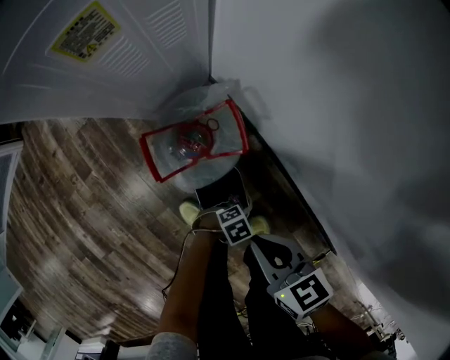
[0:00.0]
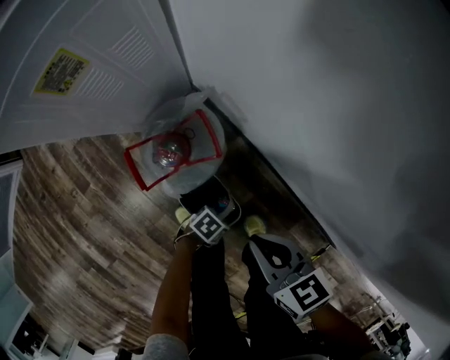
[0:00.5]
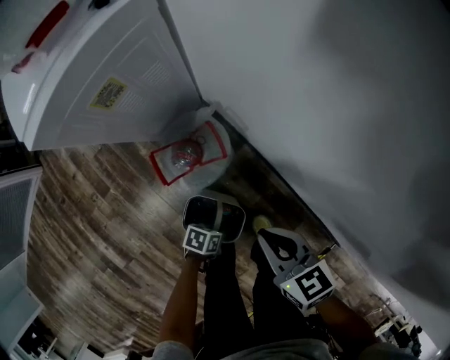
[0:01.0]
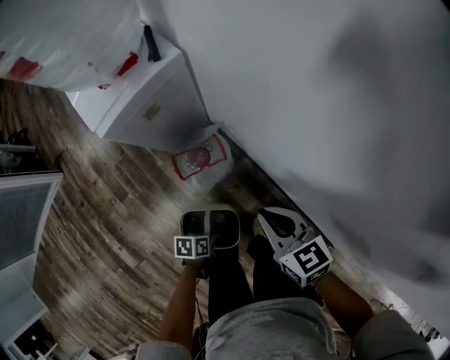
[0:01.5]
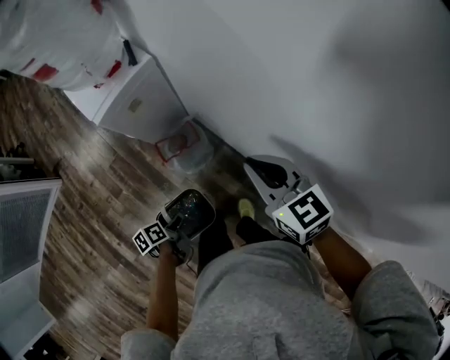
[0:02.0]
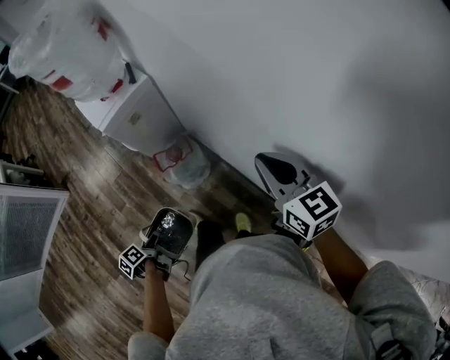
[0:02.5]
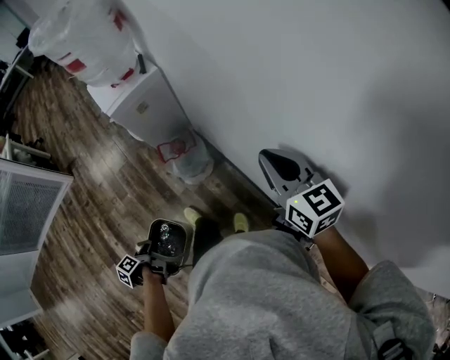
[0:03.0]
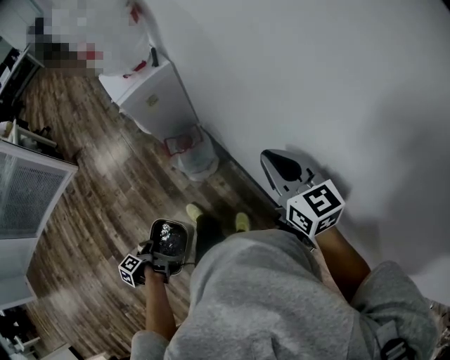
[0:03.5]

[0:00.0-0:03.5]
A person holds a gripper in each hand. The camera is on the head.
0:00.0 to 0:02.0: Both grippers move upward, some 40 cm. The left gripper rotates around the line of its fingers by roughly 80 degrees, counterclockwise from behind. Meanwhile the right gripper swivels approximately 30 degrees.
0:02.0 to 0:03.5: The left gripper shifts by some 20 cm, and swivels some 50 degrees; the right gripper shifts by approximately 15 cm.

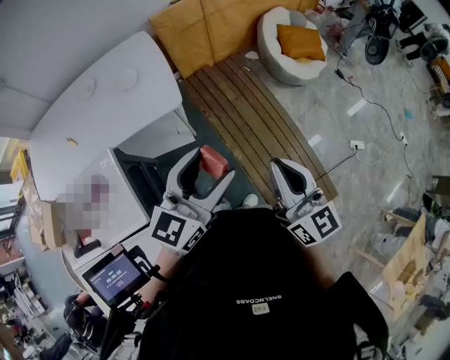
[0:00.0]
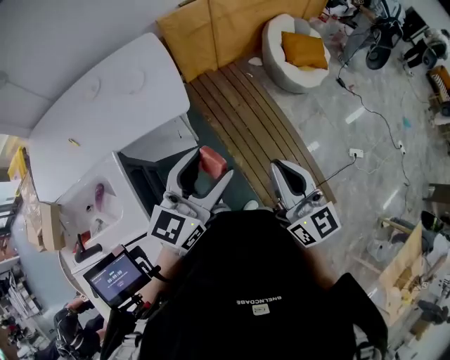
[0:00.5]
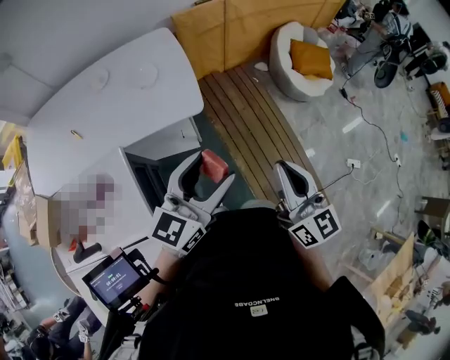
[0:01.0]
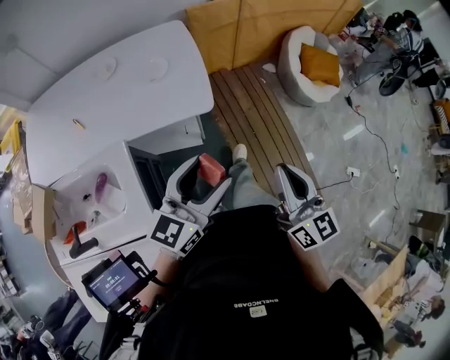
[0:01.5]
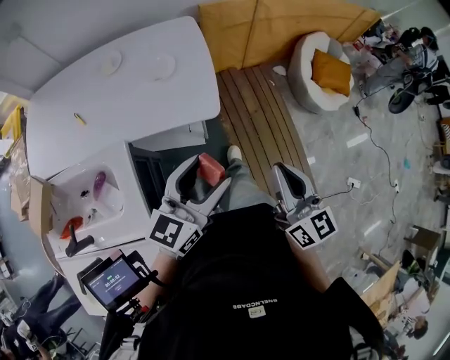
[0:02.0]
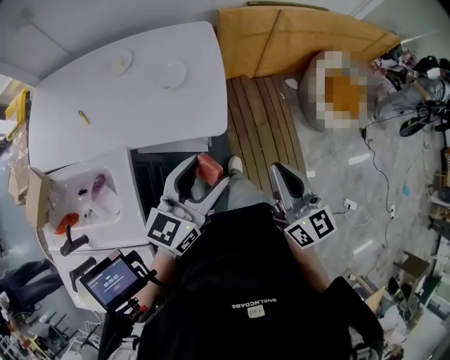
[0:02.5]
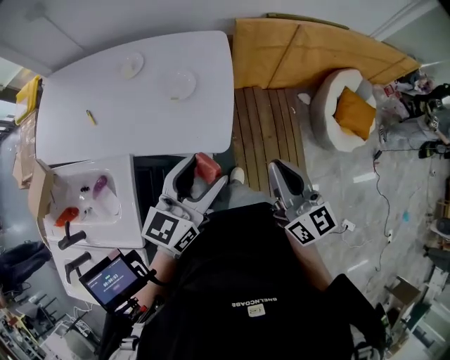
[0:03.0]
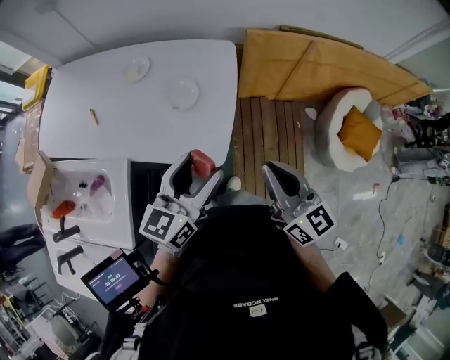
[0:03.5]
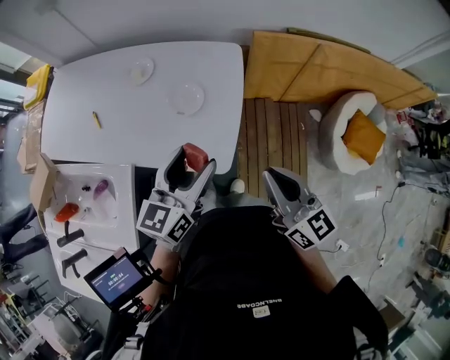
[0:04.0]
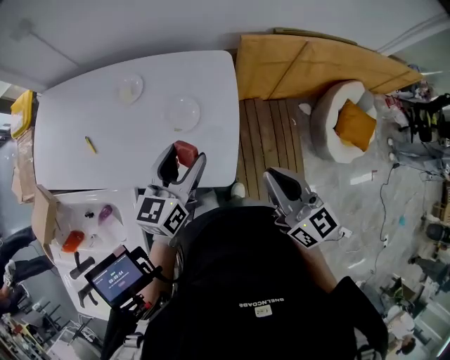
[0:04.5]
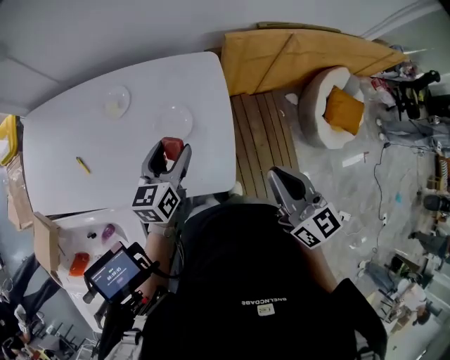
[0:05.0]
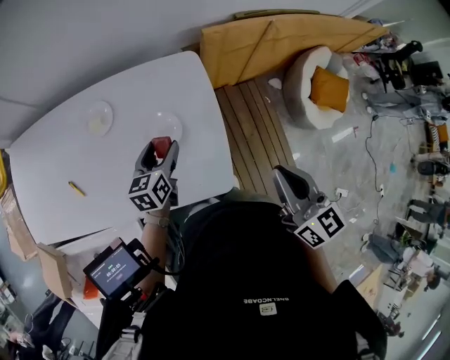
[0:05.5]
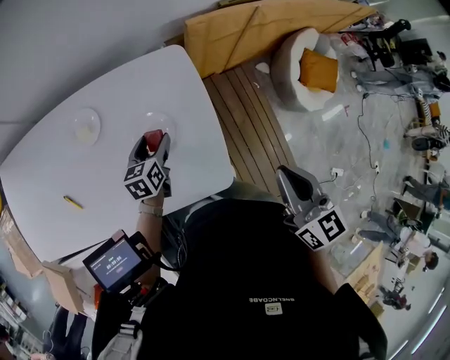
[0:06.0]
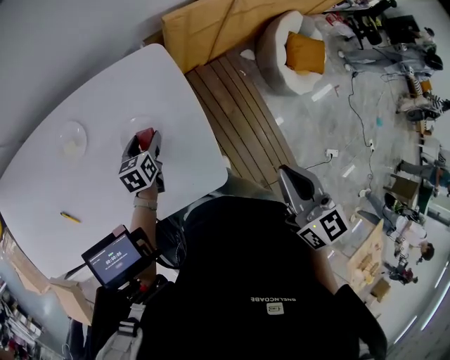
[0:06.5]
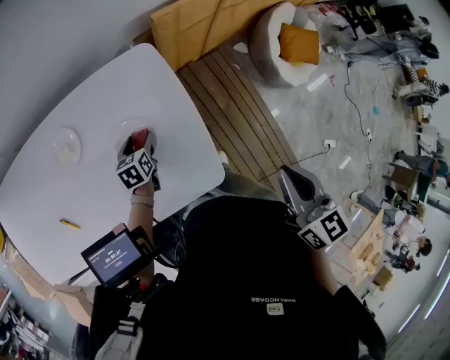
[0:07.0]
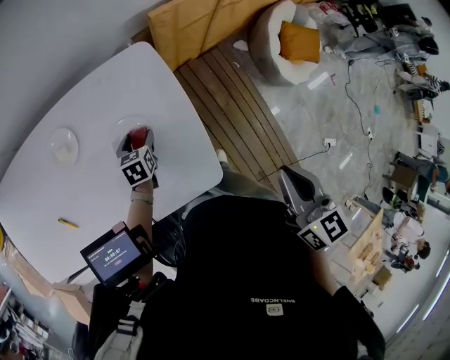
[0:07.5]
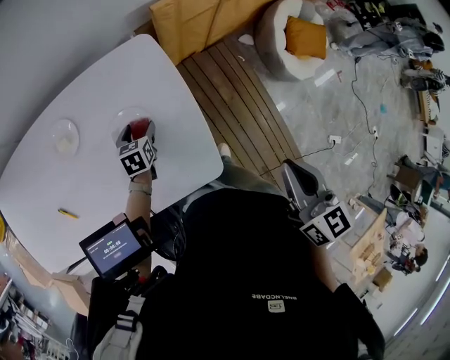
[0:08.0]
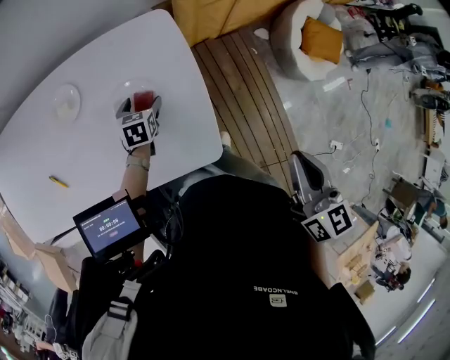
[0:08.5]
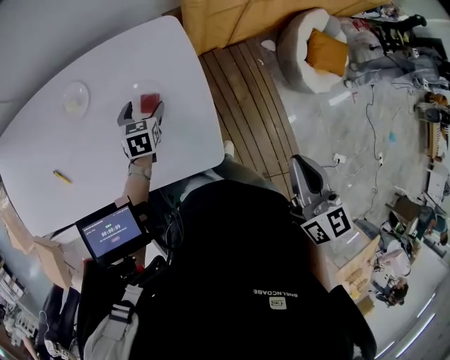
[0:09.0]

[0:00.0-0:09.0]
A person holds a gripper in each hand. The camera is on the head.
0:00.0 to 0:02.0: The right gripper heads forward and to the left, covering approximately 20 cm. Meanwhile the left gripper shifts roughly 15 cm to the left and forward.
0:02.0 to 0:04.5: The right gripper shifts by some 30 cm, and changes its angle by roughly 20 degrees. The left gripper shifts by approximately 30 cm, and changes its angle by roughly 30 degrees.
0:04.5 to 0:07.0: The left gripper shifts roughly 35 cm downward and forward, and points its fingers approximately 30 degrees further downward. Meanwhile the right gripper changes place by some 5 cm, and rotates about 40 degrees.
0:07.0 to 0:09.0: The grippers move only a little.

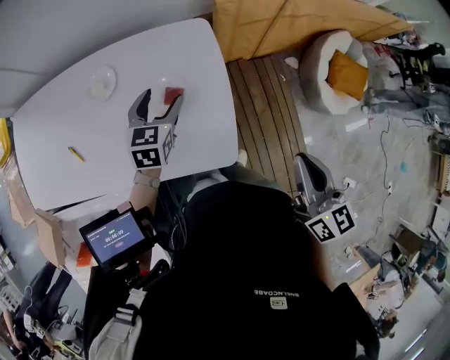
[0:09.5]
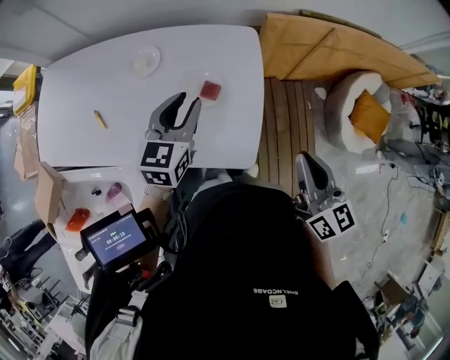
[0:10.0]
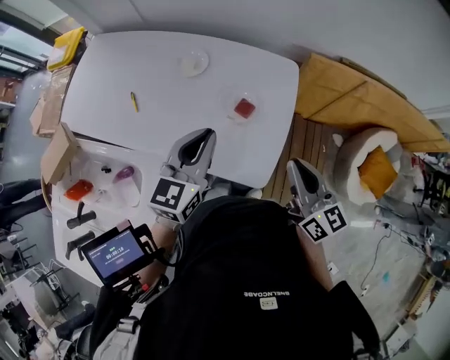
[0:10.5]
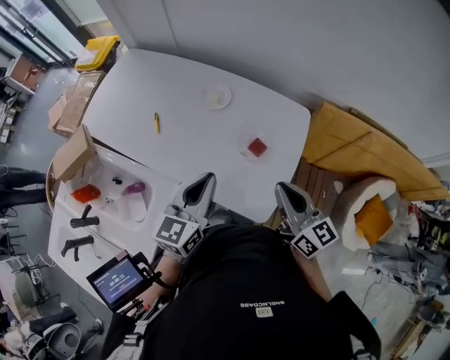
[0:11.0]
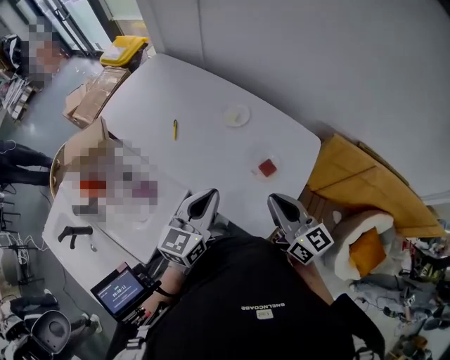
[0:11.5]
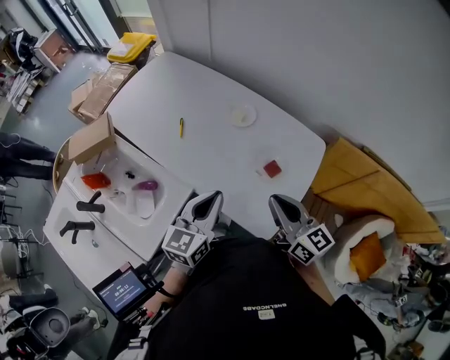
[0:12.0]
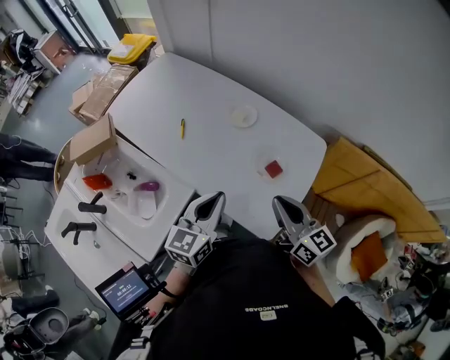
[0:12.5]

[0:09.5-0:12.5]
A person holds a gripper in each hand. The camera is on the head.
0:09.5 to 0:11.0: The right gripper ends up approximately 20 cm from where it was, and turns by approximately 40 degrees. Meanwhile the left gripper shifts by roughly 25 cm, turns by approximately 30 degrees, and closes.
0:11.0 to 0:12.5: The right gripper moves to the left, roughly 5 cm.

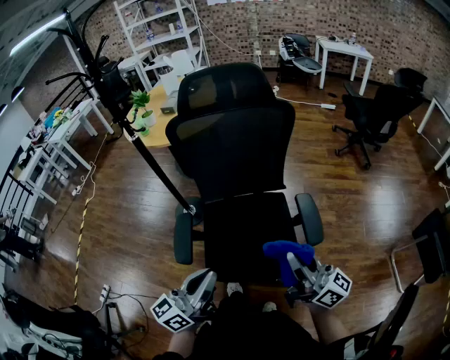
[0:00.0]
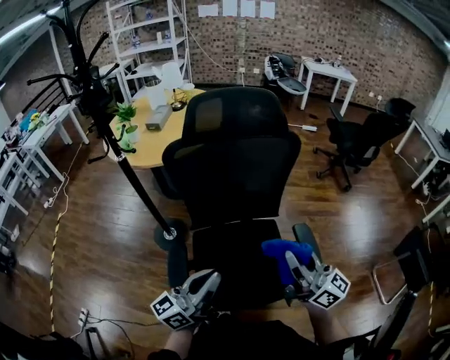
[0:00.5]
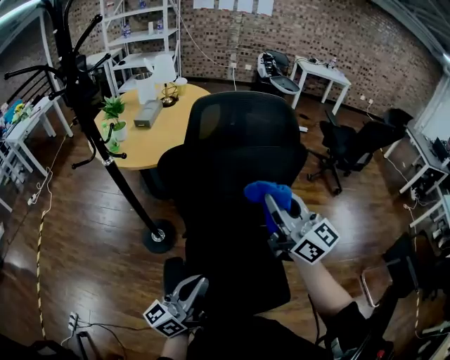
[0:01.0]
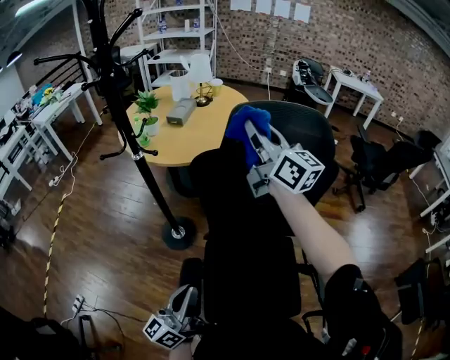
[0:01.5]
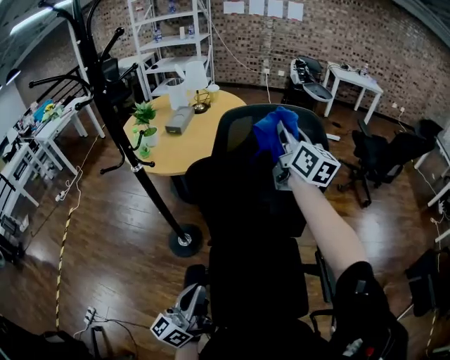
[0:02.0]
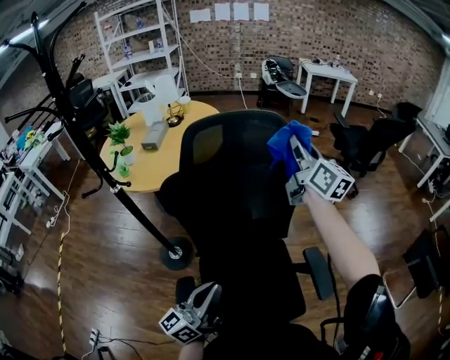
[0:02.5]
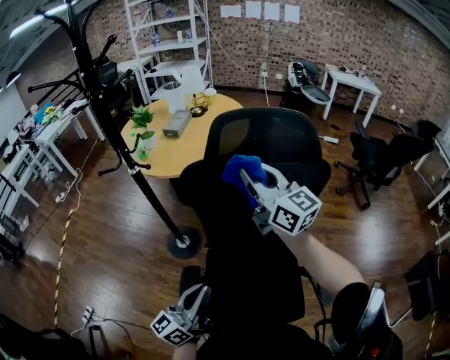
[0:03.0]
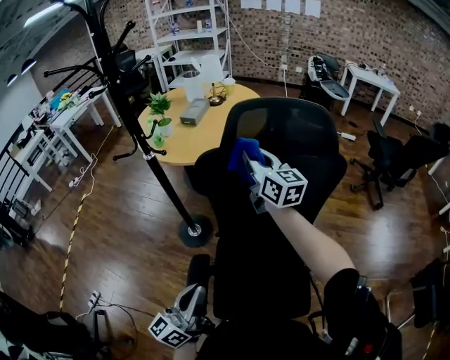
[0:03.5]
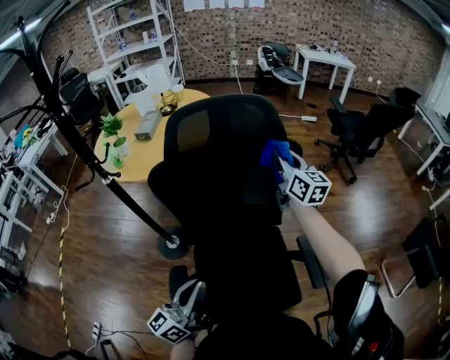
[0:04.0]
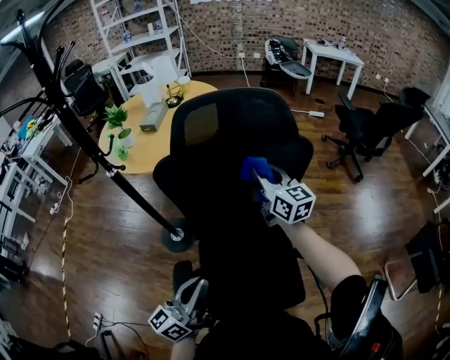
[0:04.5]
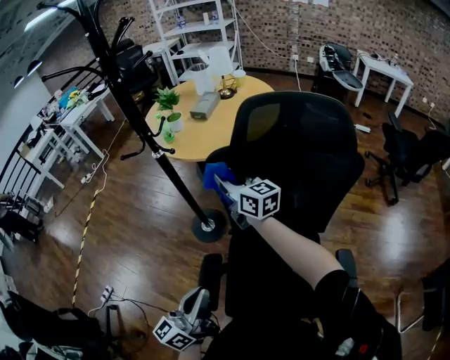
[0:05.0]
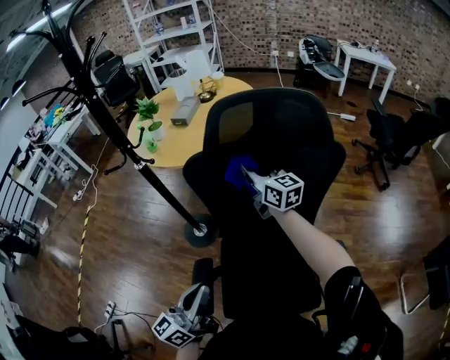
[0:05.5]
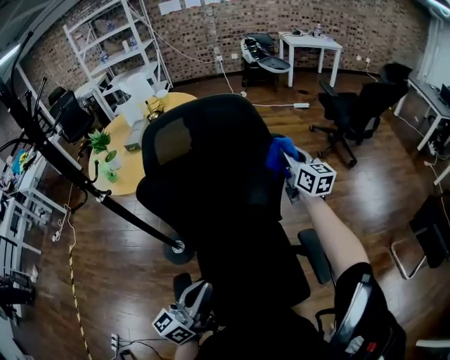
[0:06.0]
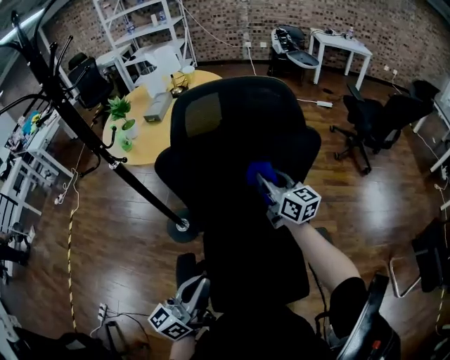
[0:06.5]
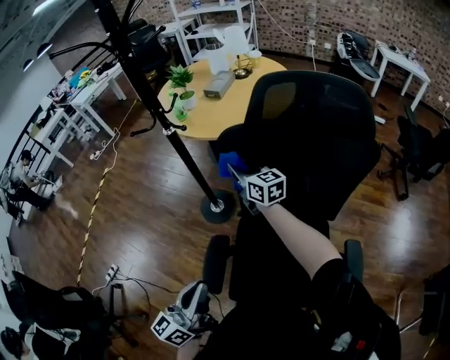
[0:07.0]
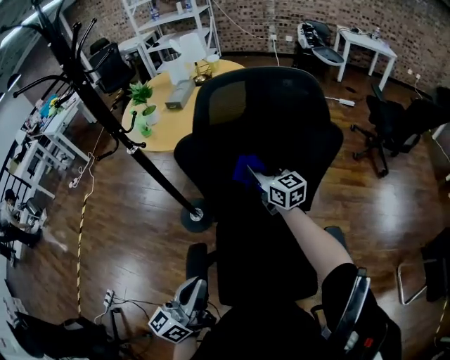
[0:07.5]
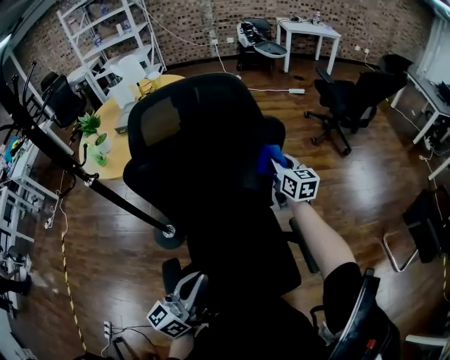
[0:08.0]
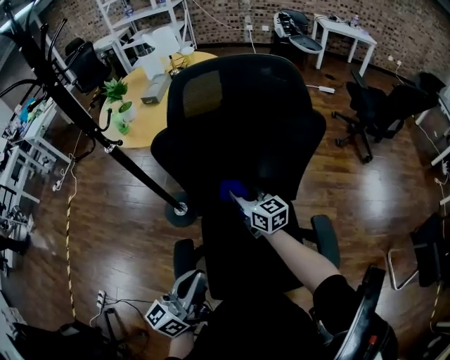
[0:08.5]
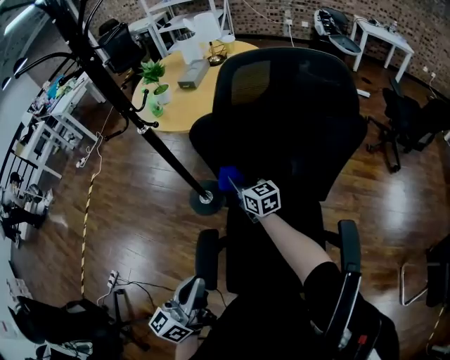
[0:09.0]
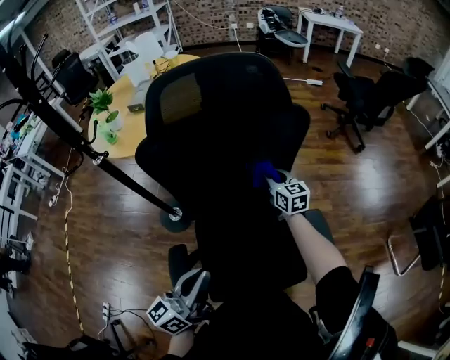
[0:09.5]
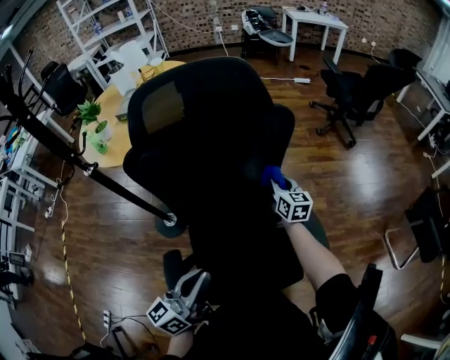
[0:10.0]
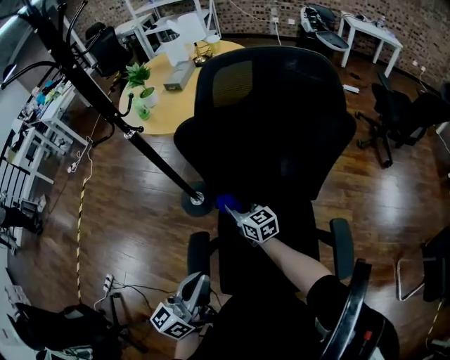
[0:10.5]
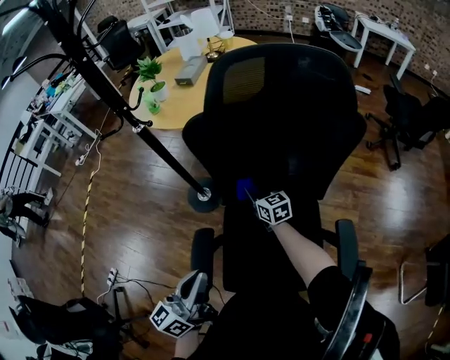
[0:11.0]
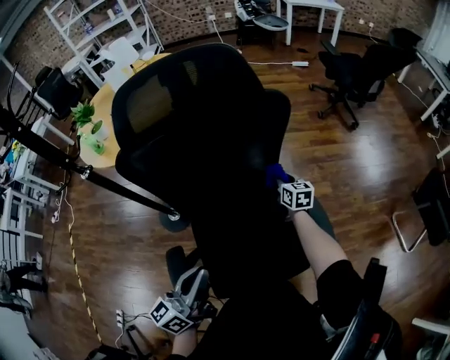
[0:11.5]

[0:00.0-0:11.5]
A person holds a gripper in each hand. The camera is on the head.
0:00.0 to 0:02.0: The left gripper shifts roughly 25 cm forward and to the left. The right gripper moves forward, about 50 cm, and swivels about 30 degrees.
0:02.0 to 0:04.0: The right gripper goes left and right, approximately 25 cm each way, reversing 2 times. Meanwhile the left gripper swings left and right, roughly 10 cm each way, with 2 reversals.
0:06.0 to 0:07.5: The right gripper rotates roughly 30 degrees.
0:07.5 to 0:09.5: The left gripper shifts by approximately 5 cm. Meanwhile the right gripper changes place by approximately 20 cm, and turns by approximately 20 degrees.
0:09.5 to 0:11.5: The right gripper goes roughly 10 cm downward.
